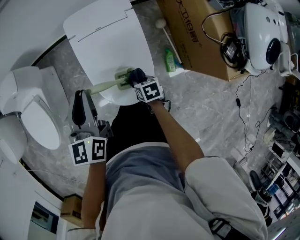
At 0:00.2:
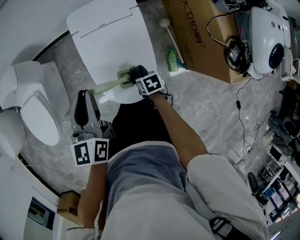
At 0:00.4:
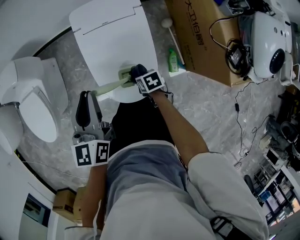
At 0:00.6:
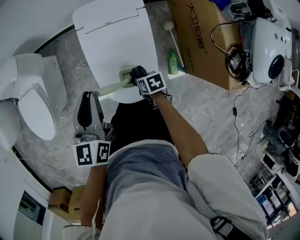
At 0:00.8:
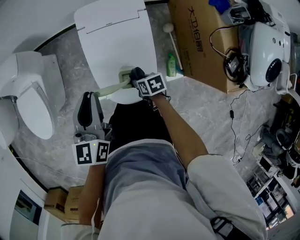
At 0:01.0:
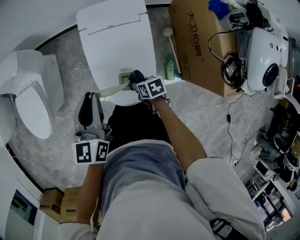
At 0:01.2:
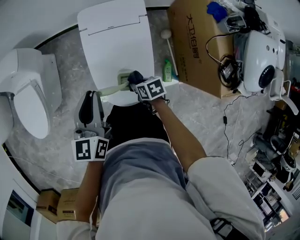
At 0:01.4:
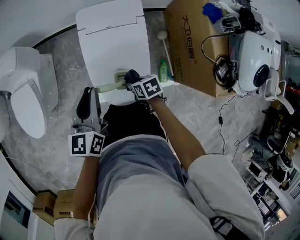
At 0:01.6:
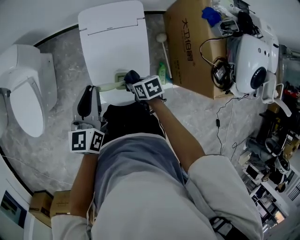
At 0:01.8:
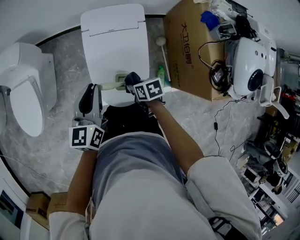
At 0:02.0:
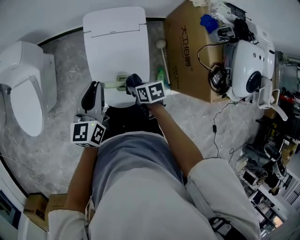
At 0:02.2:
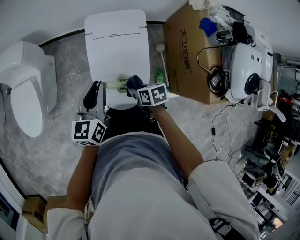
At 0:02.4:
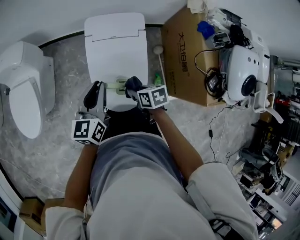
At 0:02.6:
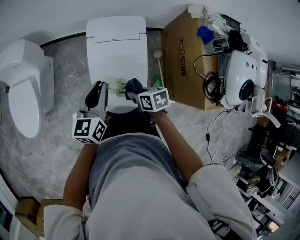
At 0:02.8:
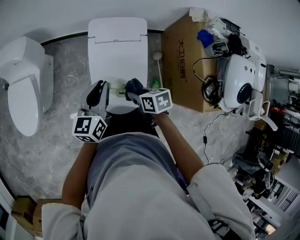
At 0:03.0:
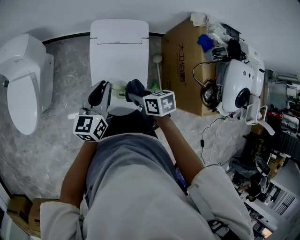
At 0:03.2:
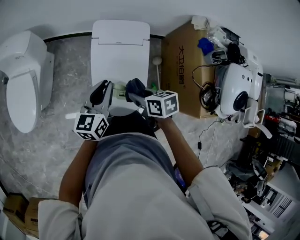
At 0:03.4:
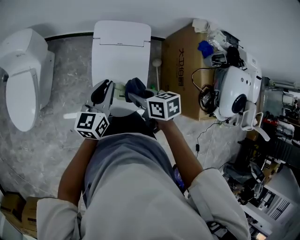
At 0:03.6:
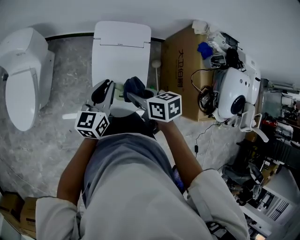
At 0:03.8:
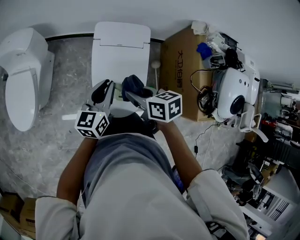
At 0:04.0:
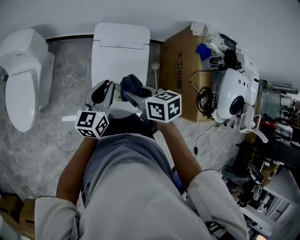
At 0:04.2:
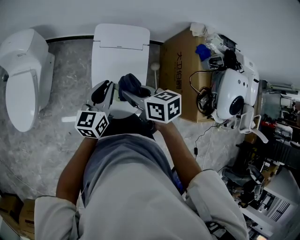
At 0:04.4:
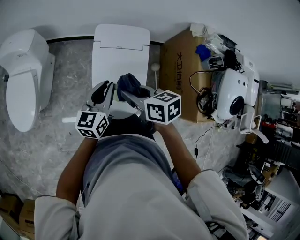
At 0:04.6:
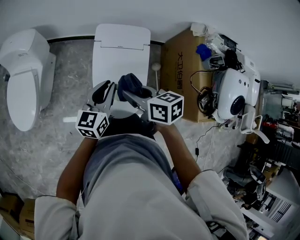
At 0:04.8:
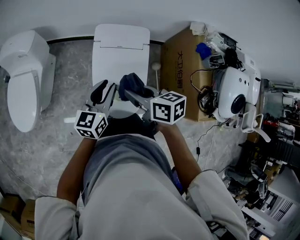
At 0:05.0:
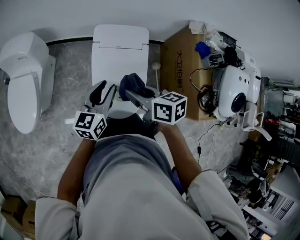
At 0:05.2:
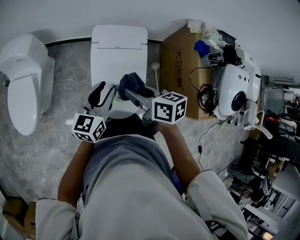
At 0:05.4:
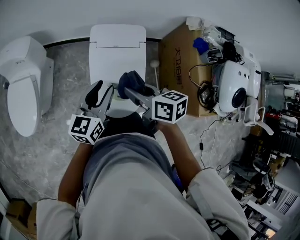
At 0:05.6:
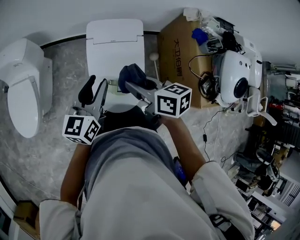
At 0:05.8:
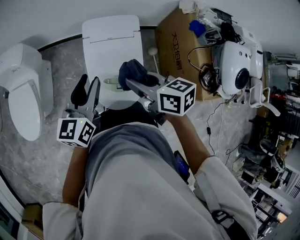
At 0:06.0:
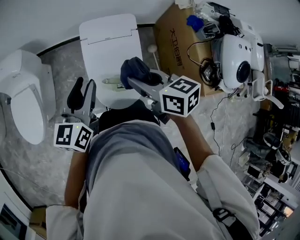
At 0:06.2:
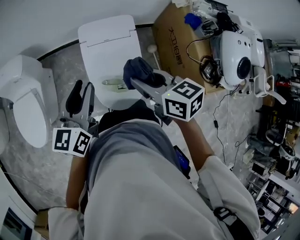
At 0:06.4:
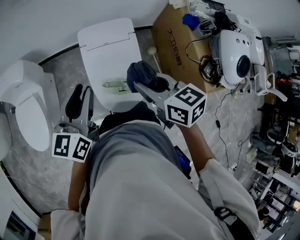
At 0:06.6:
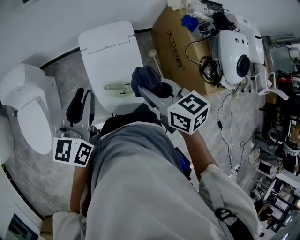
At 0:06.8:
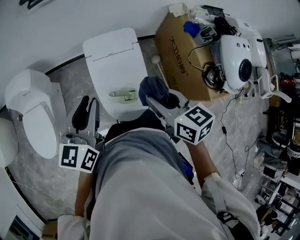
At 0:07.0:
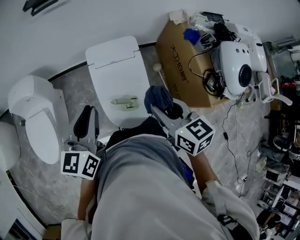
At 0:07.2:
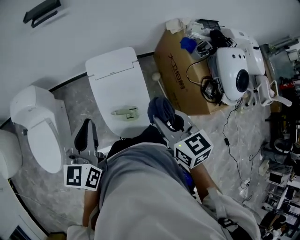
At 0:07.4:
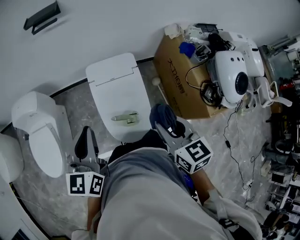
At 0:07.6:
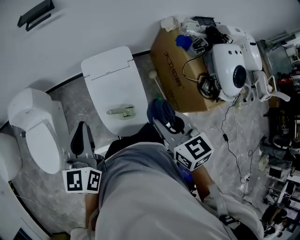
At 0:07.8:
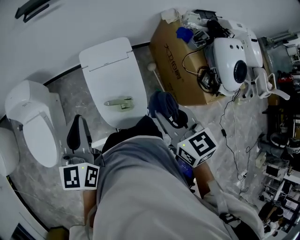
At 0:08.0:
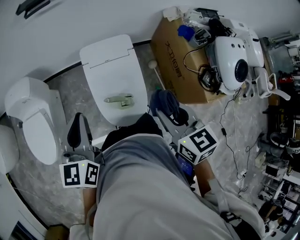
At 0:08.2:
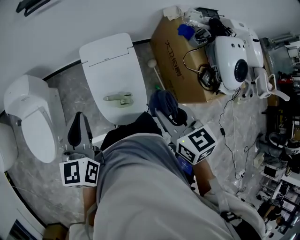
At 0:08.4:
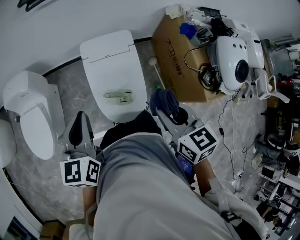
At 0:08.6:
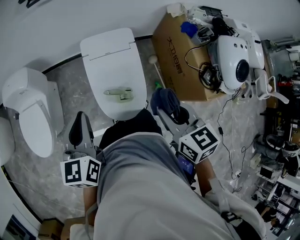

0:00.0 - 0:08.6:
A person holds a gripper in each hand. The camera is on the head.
0:00.0 - 0:01.4: The right gripper heads upward, covering about 5 cm.
0:01.4 - 0:02.8: The right gripper heads upward, covering approximately 10 cm.
0:02.8 - 0:04.4: The right gripper moves upward and to the left, some 15 cm.
0:04.4 - 0:05.8: The right gripper changes place by approximately 5 cm. The left gripper moves upward, about 10 cm.
0:05.8 - 0:07.2: The right gripper goes approximately 10 cm upward, to the right and backward, and turns by about 30 degrees. The left gripper travels upward by approximately 10 cm.
0:07.2 - 0:08.6: The grippers make only small movements.

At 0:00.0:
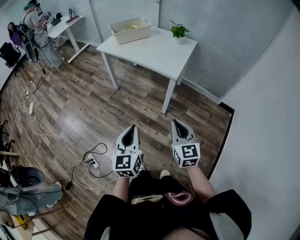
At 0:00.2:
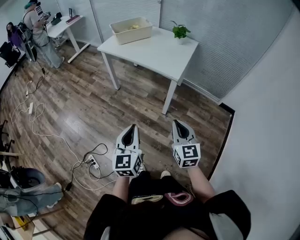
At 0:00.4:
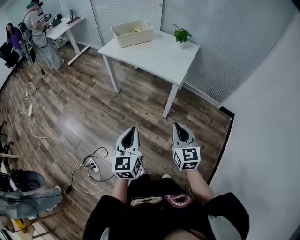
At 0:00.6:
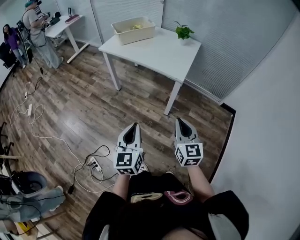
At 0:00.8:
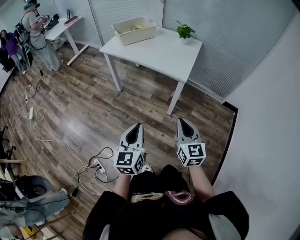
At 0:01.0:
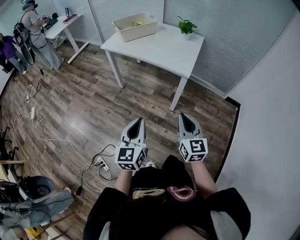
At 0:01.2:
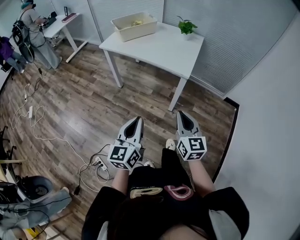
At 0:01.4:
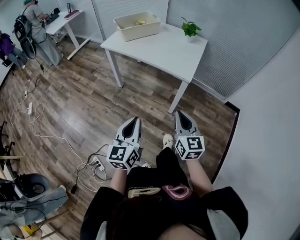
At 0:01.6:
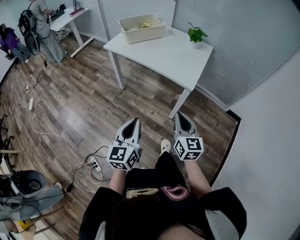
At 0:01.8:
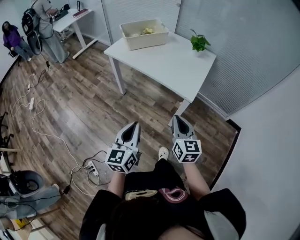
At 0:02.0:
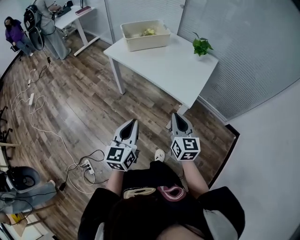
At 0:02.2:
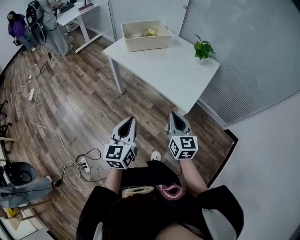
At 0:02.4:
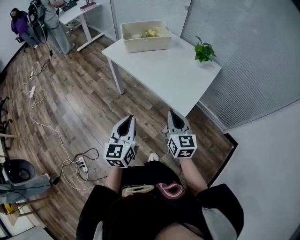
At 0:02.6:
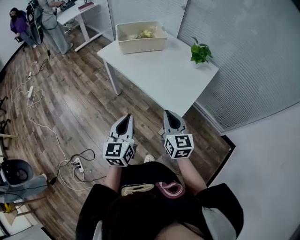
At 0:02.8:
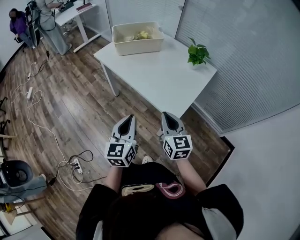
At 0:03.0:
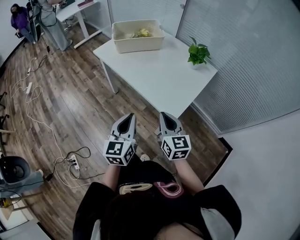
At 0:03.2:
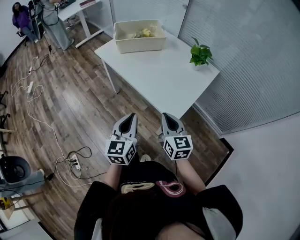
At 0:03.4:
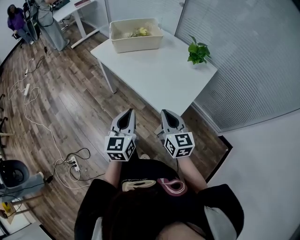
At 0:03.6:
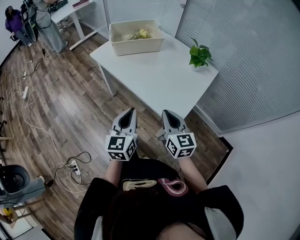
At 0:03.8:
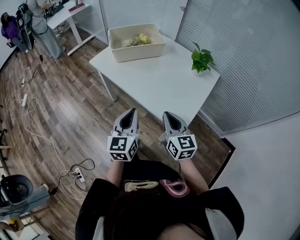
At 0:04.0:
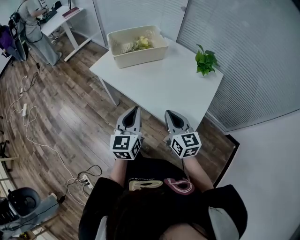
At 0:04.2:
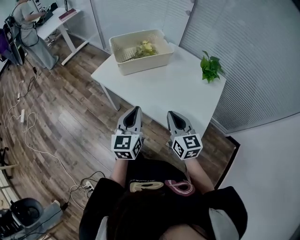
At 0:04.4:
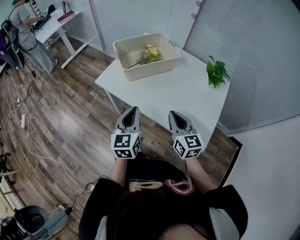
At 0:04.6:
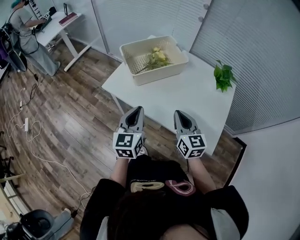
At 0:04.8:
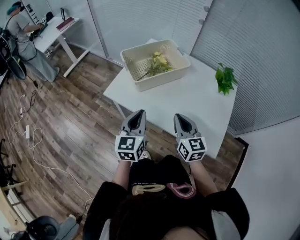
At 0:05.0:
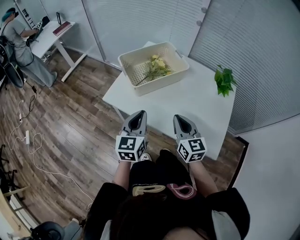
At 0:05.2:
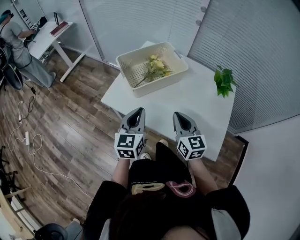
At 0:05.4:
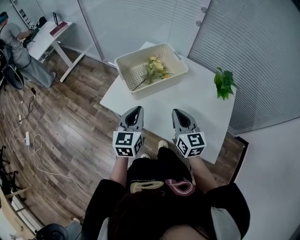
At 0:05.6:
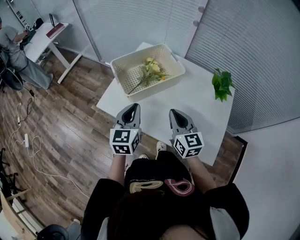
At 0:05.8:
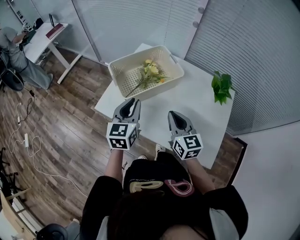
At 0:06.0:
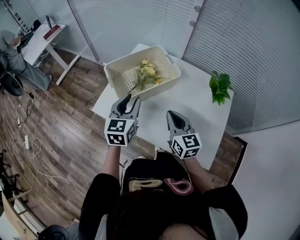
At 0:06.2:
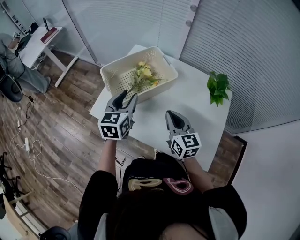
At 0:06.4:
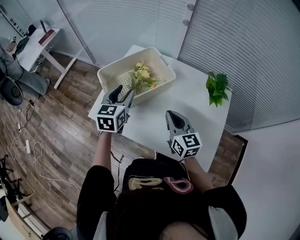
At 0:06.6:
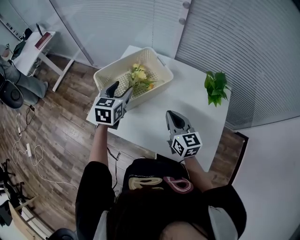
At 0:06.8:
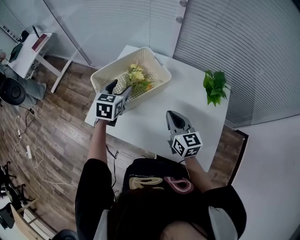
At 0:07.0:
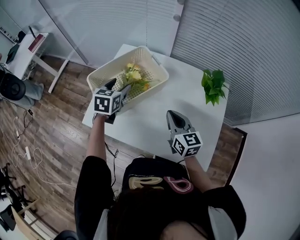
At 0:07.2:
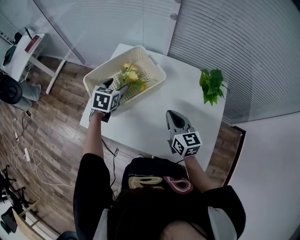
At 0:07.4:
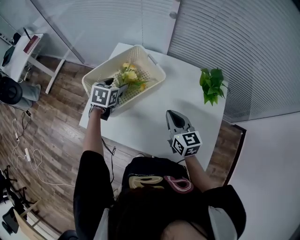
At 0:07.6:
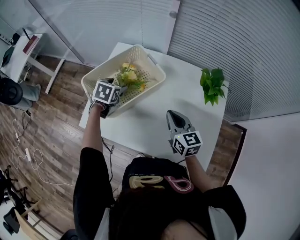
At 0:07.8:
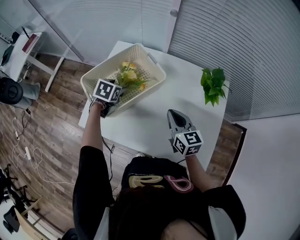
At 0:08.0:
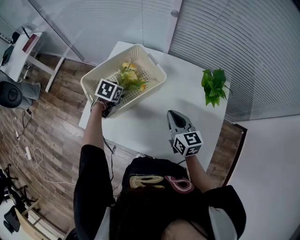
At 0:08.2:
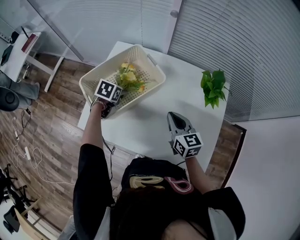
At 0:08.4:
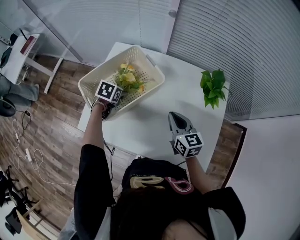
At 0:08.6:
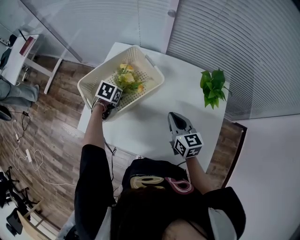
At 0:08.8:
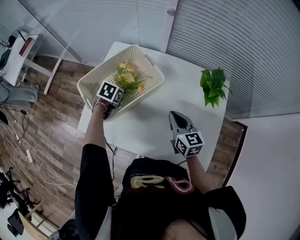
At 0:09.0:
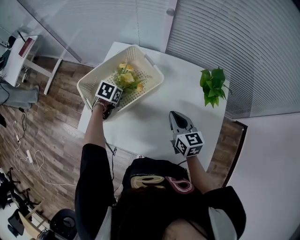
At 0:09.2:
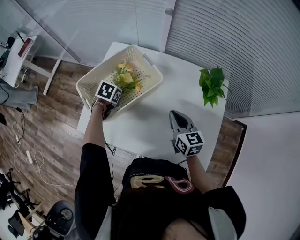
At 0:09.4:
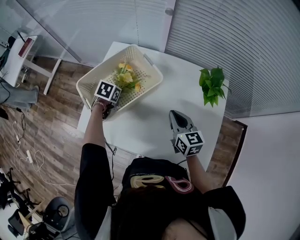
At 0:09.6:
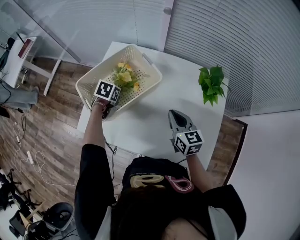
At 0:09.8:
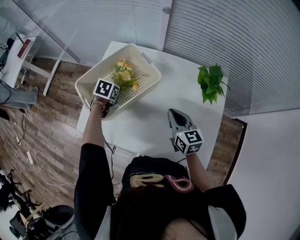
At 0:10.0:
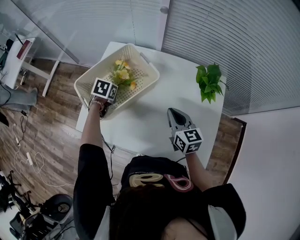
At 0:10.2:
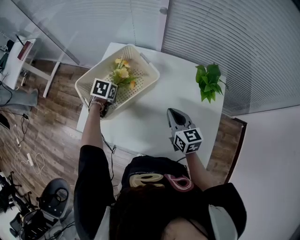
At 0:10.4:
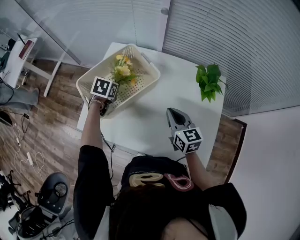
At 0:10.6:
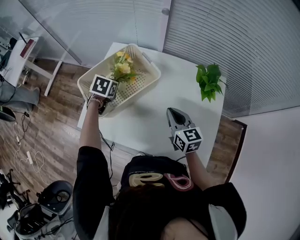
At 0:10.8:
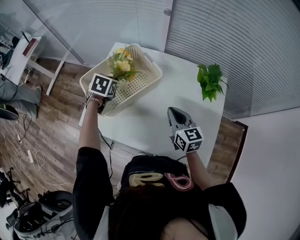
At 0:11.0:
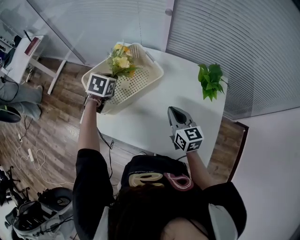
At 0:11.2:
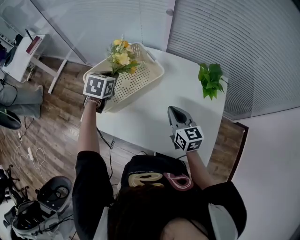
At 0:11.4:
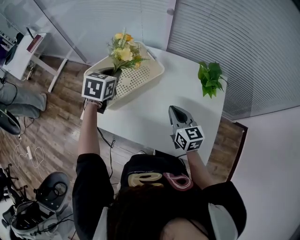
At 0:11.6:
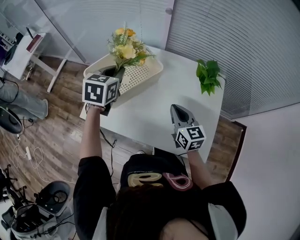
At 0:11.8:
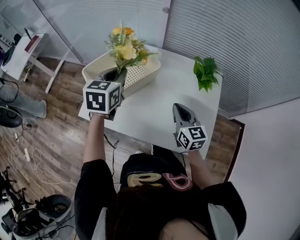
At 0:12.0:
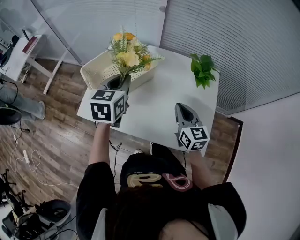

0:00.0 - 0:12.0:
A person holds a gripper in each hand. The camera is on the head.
0:00.0 - 0:01.6: The two grippers go approximately 15 cm forward and to the left.
0:01.6 - 0:03.0: The grippers both shift forward and to the right by about 25 cm.
0:03.0 - 0:04.4: Both grippers move forward and to the left, some 30 cm.
0:04.4 - 0:06.0: Both grippers move forward, roughly 20 cm. The left gripper opens.
0:06.0 - 0:07.6: The right gripper moves to the right and forward, approximately 10 cm, while the left gripper goes some 20 cm forward and downward, angles its fingers downward, by some 40 degrees, and opens.
0:07.6 - 0:09.0: The left gripper is displaced downward by about 5 cm, and closes up.
0:09.0 - 0:10.4: The grippers move only a little.
0:10.4 - 0:12.0: The right gripper is displaced backward and upward by about 10 cm; the left gripper goes some 25 cm upward and backward, and tips its fingers upward by about 30 degrees.

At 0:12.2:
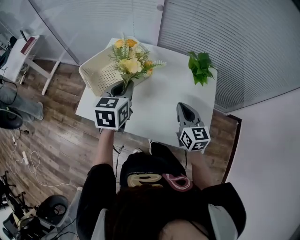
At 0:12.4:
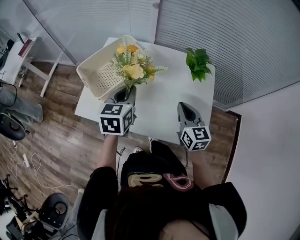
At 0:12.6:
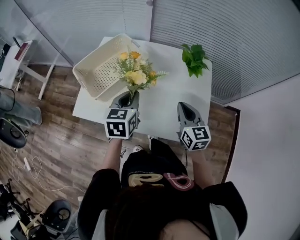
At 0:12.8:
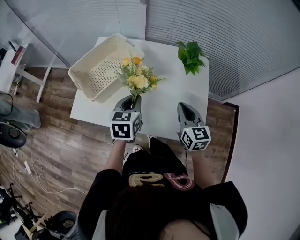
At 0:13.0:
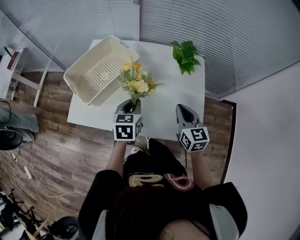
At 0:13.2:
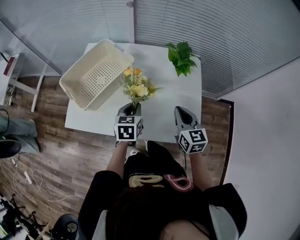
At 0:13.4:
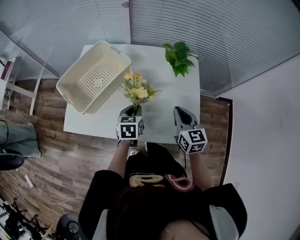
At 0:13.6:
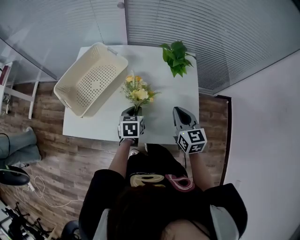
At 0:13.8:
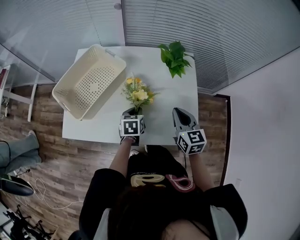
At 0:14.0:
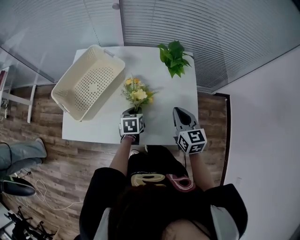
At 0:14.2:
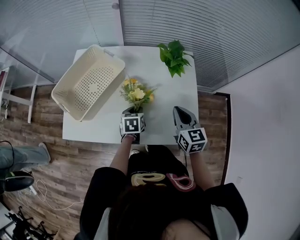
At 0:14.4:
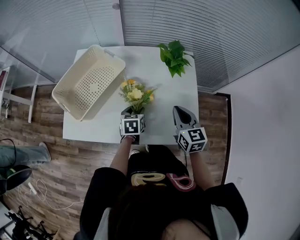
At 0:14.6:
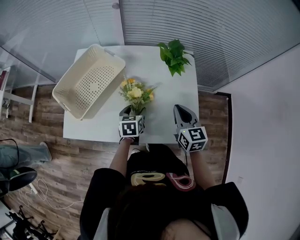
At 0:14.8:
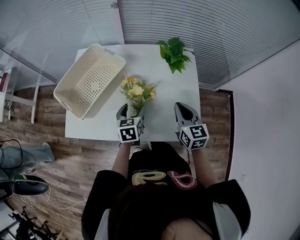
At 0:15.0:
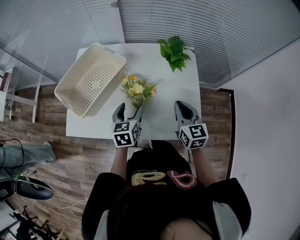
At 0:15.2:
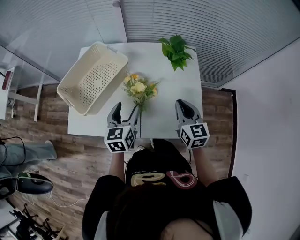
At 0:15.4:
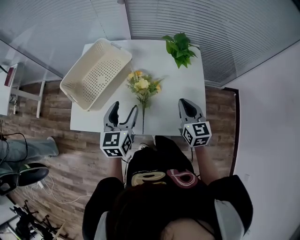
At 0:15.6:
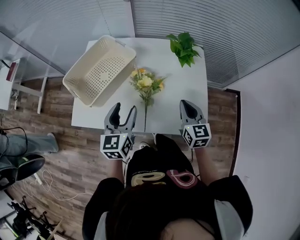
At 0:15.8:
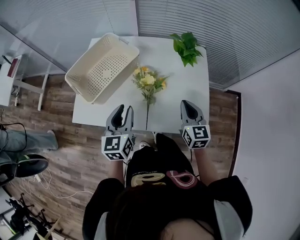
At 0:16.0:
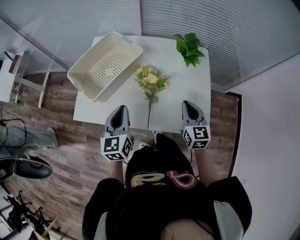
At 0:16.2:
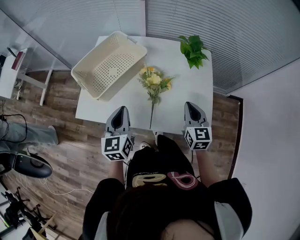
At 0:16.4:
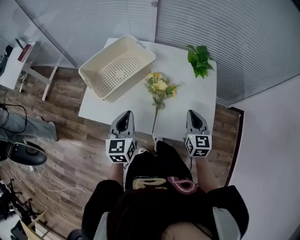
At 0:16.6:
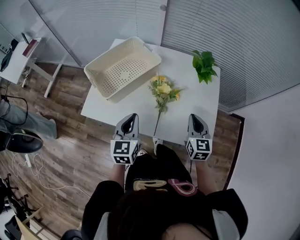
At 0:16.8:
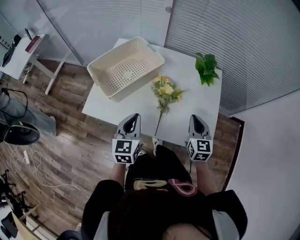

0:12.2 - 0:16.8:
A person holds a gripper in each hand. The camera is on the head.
0:12.2 - 0:13.8: The left gripper goes about 25 cm downward and to the right, and rotates some 20 degrees. The right gripper is displaced to the right by about 5 cm.
0:13.8 - 0:15.2: The left gripper travels upward and to the left by roughly 15 cm, changes its angle by about 20 degrees, and opens its fingers.
0:15.2 - 0:16.8: The left gripper shifts about 10 cm backward and to the left, and closes up.
